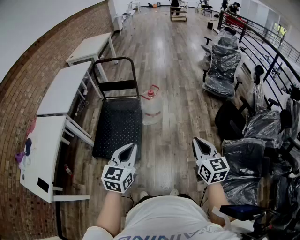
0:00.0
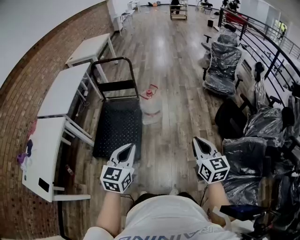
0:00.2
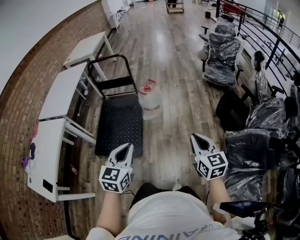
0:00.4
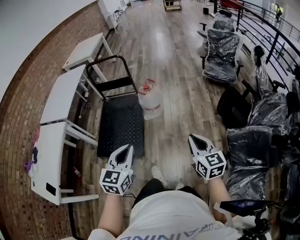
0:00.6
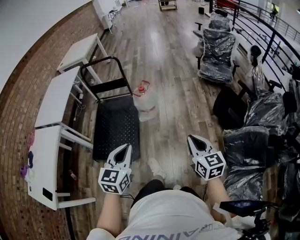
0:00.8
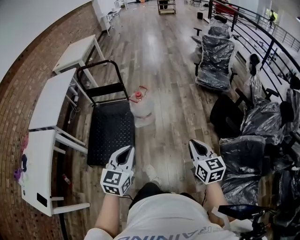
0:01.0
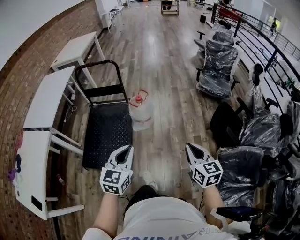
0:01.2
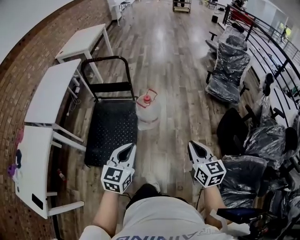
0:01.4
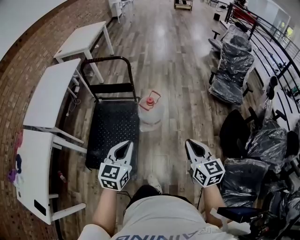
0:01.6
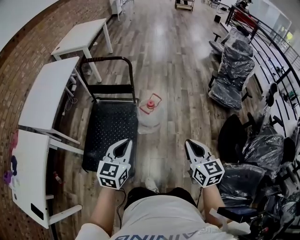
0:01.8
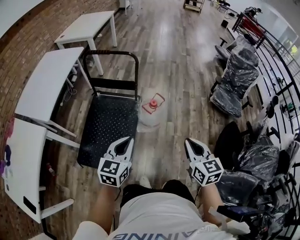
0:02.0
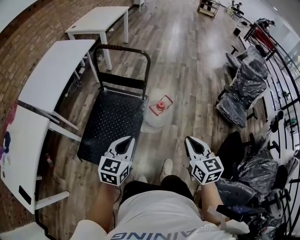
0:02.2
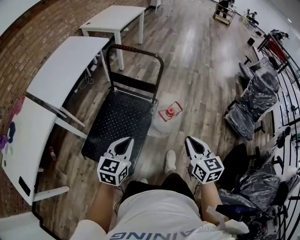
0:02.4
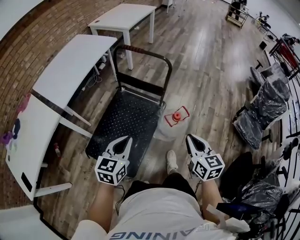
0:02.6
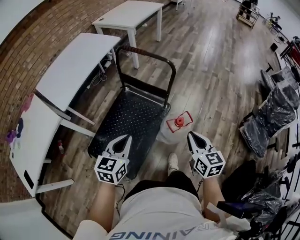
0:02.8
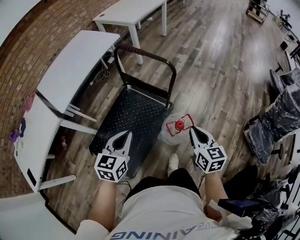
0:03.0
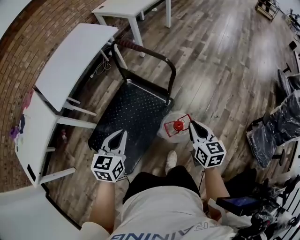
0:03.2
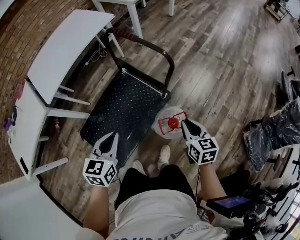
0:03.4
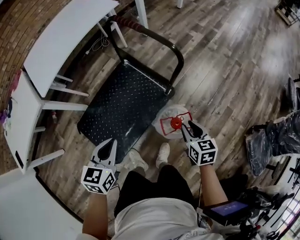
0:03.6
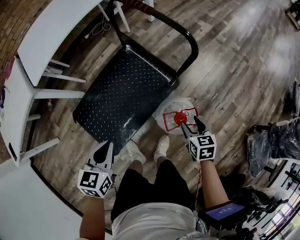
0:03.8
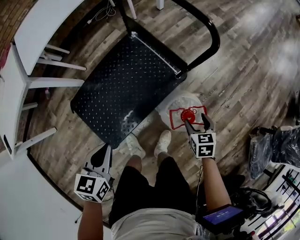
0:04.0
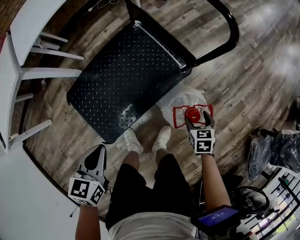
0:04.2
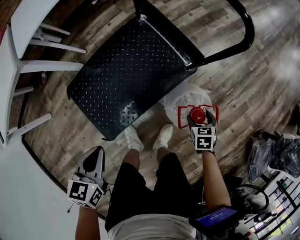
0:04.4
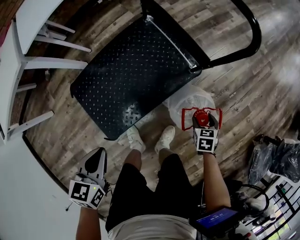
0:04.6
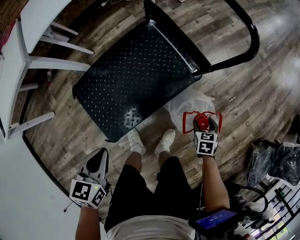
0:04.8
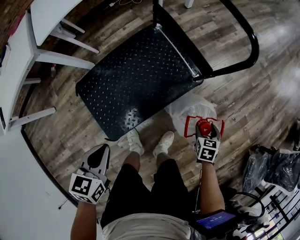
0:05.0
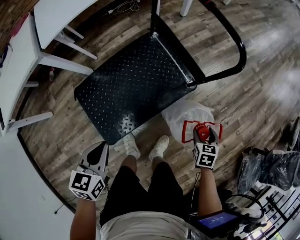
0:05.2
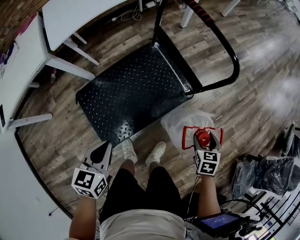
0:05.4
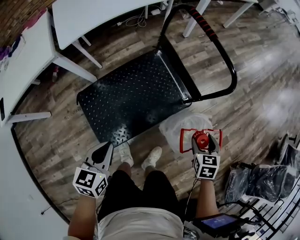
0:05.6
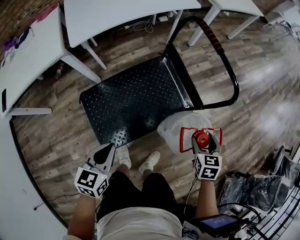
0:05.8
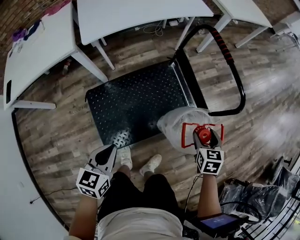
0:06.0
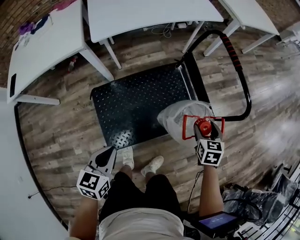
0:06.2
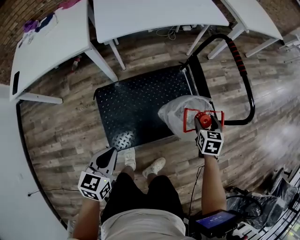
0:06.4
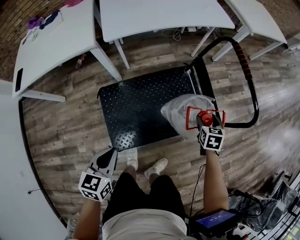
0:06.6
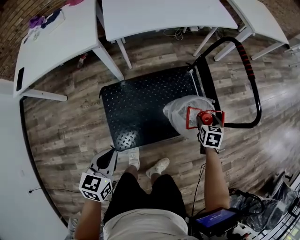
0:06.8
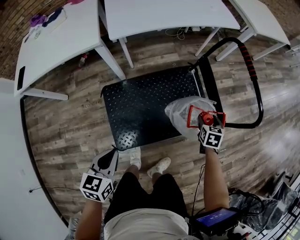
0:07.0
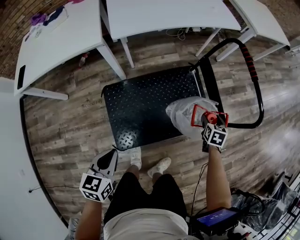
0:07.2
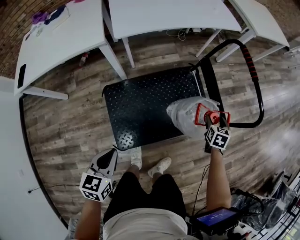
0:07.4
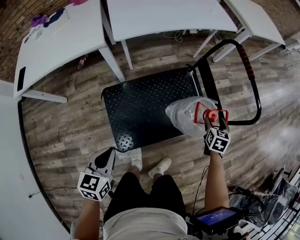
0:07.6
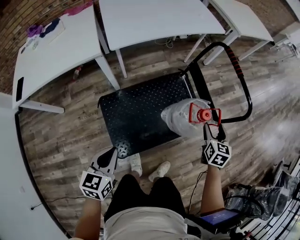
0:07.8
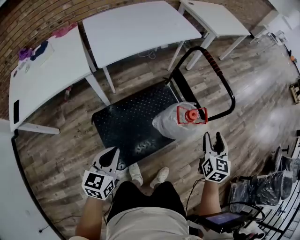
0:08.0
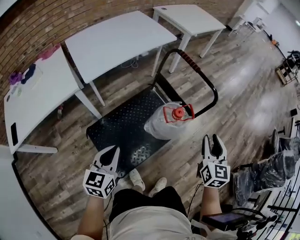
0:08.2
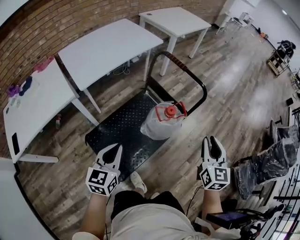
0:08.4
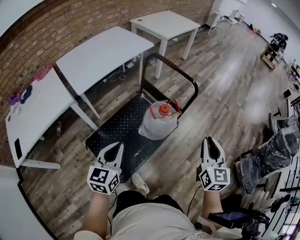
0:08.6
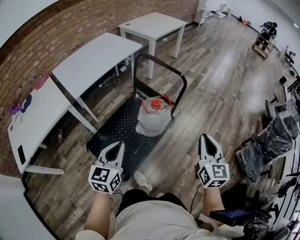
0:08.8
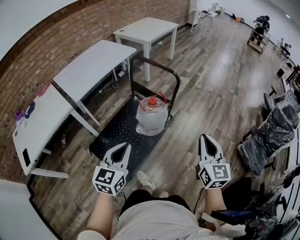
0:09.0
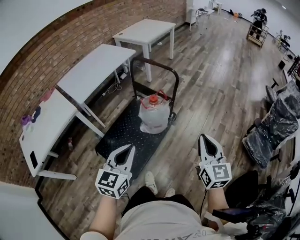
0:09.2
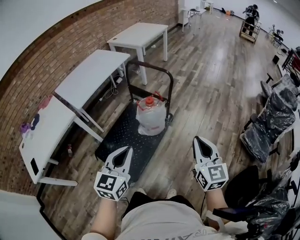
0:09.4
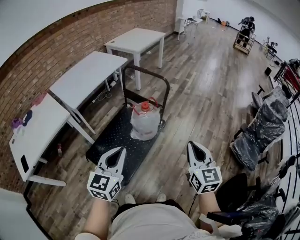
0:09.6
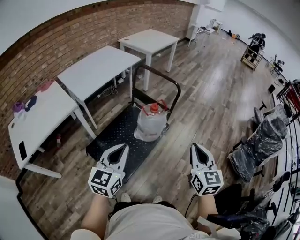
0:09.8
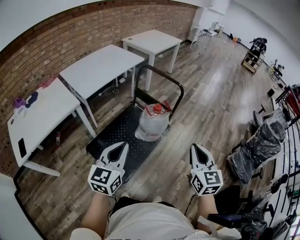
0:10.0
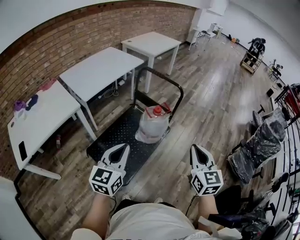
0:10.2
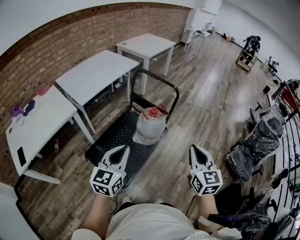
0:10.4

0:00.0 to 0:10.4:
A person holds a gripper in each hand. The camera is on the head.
0:00.0 to 0:01.4: The two grippers go about 20 cm forward.
0:01.4 to 0:03.0: The left gripper moves roughly 35 cm, and turns by about 30 degrees. Meanwhile the right gripper moves approximately 50 cm, and rotates roughly 30 degrees.
0:03.0 to 0:04.4: The right gripper moves downward, some 40 cm, tilts its fingers about 40 degrees downward, and opens up. Meanwhile the left gripper is displaced downward by roughly 20 cm, and rotates about 40 degrees.
0:04.4 to 0:06.0: The left gripper is displaced upward and to the left by about 10 cm; the right gripper moves upward, to the left and forward, about 30 cm.
0:06.0 to 0:07.4: The right gripper moves downward and forward, about 15 cm. Meanwhile the left gripper heads to the left and backward, covering some 10 cm.
0:07.4 to 0:09.0: The right gripper ends up about 60 cm from where it was, points its fingers roughly 40 degrees further upward, and closes up; the left gripper is displaced upward by some 20 cm, and turns by roughly 50 degrees.
0:09.0 to 0:10.4: Both grippers move to the left and backward, some 10 cm.

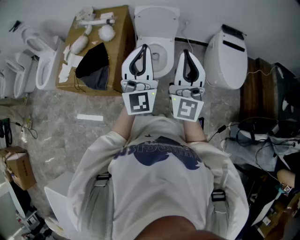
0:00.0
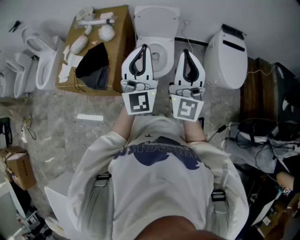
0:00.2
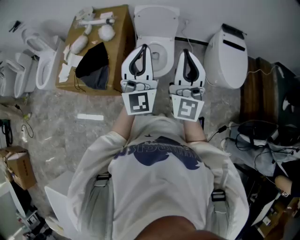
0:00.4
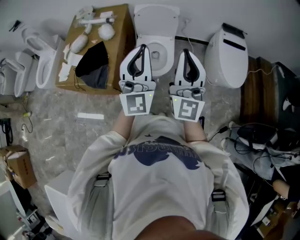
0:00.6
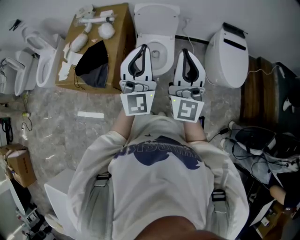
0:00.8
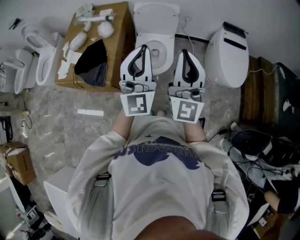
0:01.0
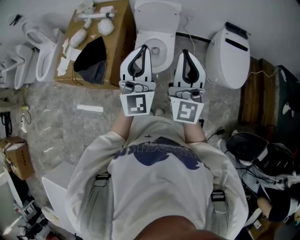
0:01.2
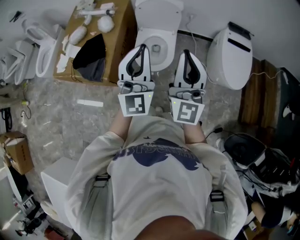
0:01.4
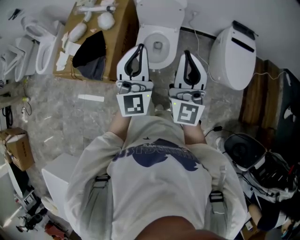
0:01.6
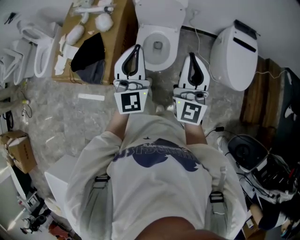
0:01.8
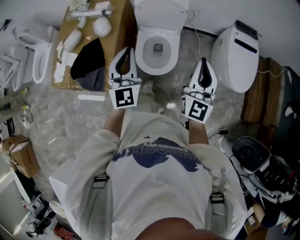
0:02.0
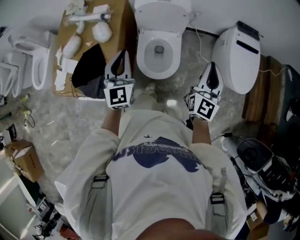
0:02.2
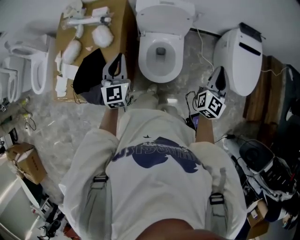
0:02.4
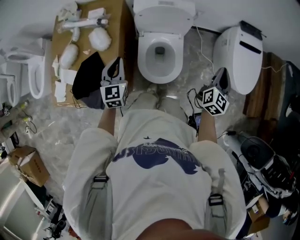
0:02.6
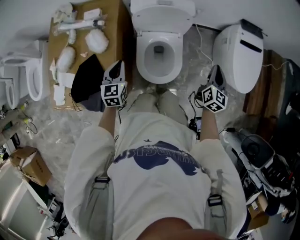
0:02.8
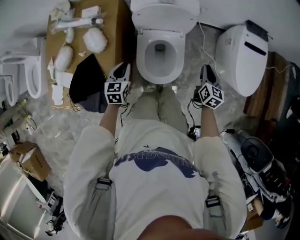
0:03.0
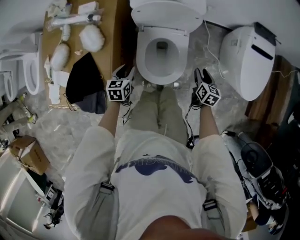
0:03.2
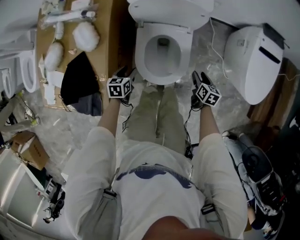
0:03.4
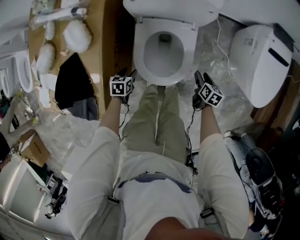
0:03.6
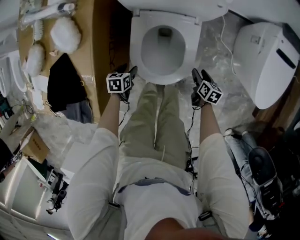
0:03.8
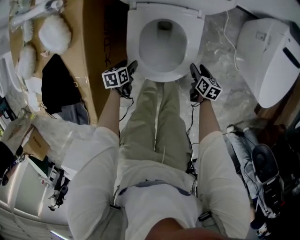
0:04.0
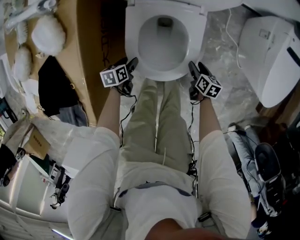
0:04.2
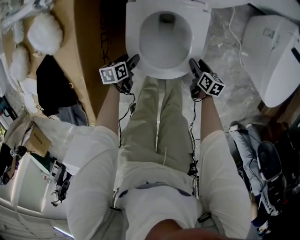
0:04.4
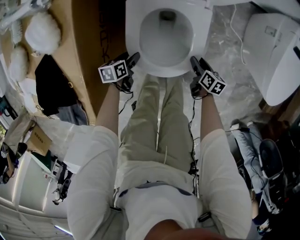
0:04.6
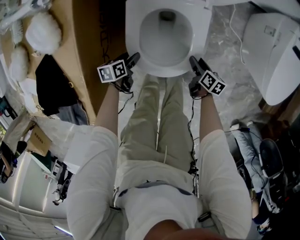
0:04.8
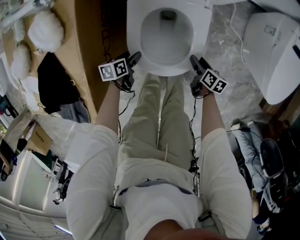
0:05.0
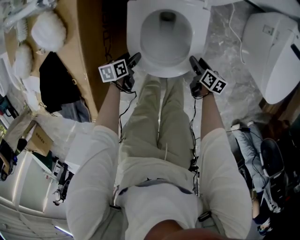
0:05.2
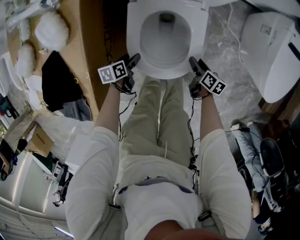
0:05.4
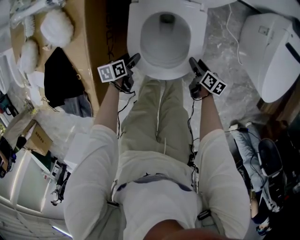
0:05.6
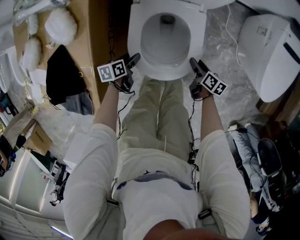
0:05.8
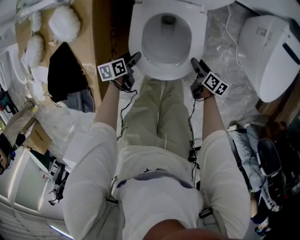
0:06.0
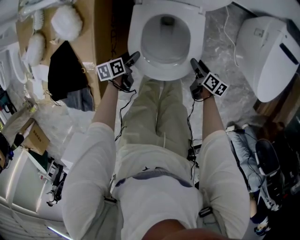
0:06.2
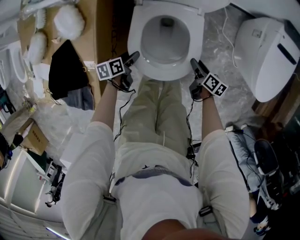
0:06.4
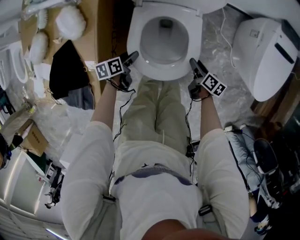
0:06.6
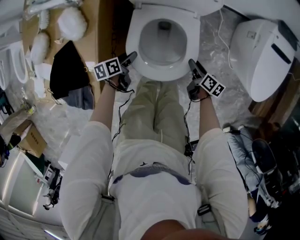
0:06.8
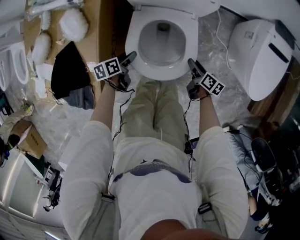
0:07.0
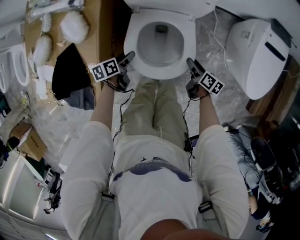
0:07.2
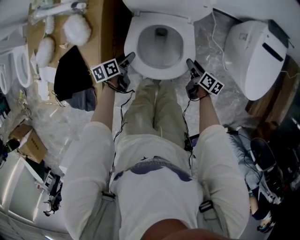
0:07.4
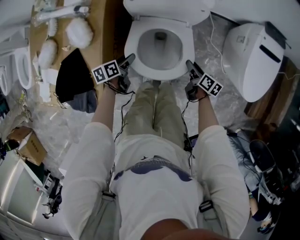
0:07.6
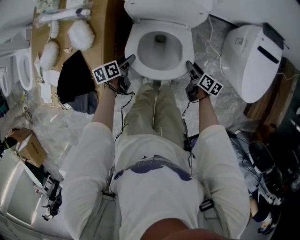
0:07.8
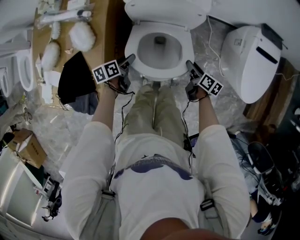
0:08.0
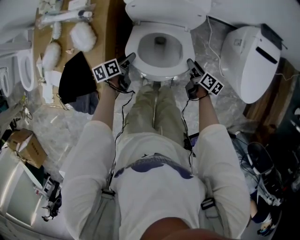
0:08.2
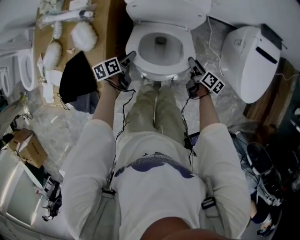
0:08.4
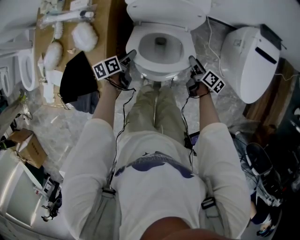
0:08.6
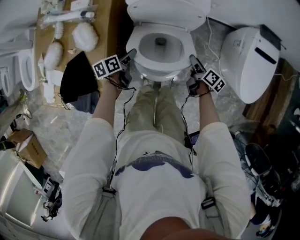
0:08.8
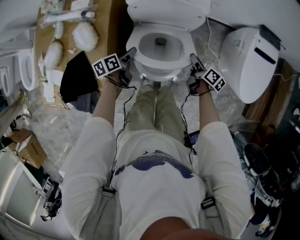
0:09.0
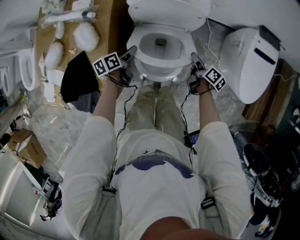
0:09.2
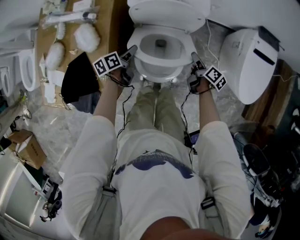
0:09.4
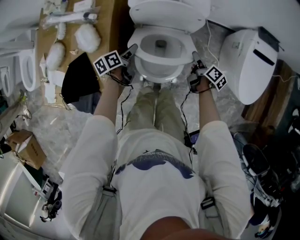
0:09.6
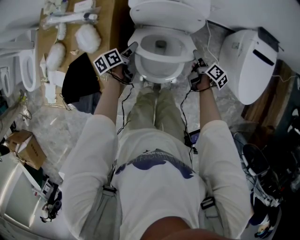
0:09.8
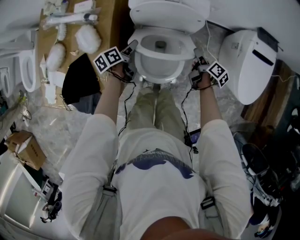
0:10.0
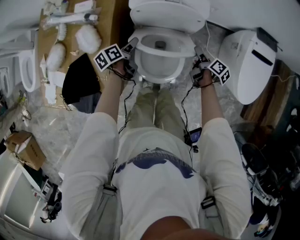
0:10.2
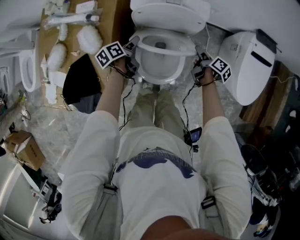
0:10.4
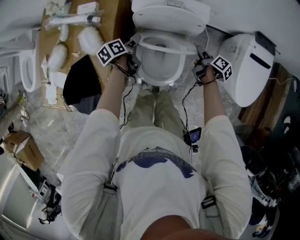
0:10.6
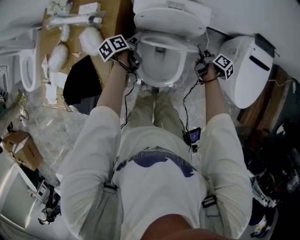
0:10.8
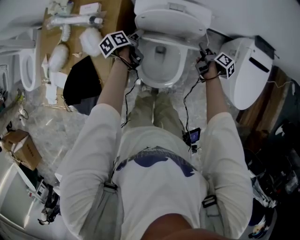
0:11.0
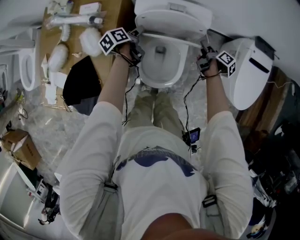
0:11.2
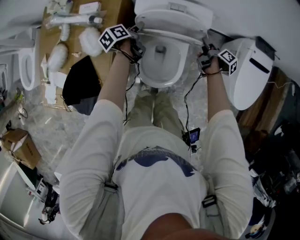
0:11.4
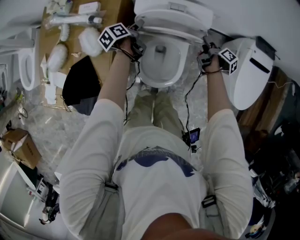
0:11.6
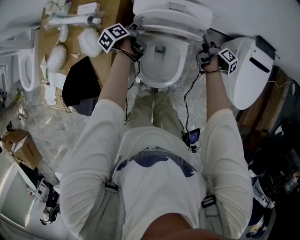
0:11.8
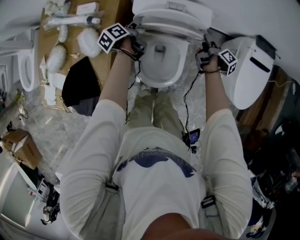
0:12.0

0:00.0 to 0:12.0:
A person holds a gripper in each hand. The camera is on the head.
0:00.0 to 0:01.6: The left gripper ends up approximately 5 cm from where it was; the right gripper is displaced forward by approximately 5 cm.
0:01.6 to 0:03.0: The right gripper travels downward and forward by about 50 cm, and tilts its fingers approximately 50 degrees downward. The left gripper moves downward, forward and to the left, approximately 50 cm, and tilts its fingers approximately 50 degrees downward.
0:03.0 to 0:04.4: The grippers both shift downward by some 40 cm. The left gripper rotates about 40 degrees, and opens up, while the right gripper rotates roughly 40 degrees, and opens its fingers.
0:04.4 to 0:06.0: The grippers both shift upward by roughly 10 cm.
0:06.0 to 0:07.6: Both grippers move upward and forward, some 15 cm.
0:07.6 to 0:09.0: Both grippers travel together forward and upward, roughly 10 cm.
0:09.0 to 0:10.4: The grippers both shift forward by roughly 5 cm.
0:10.4 to 0:12.0: Both grippers travel together forward, roughly 10 cm.

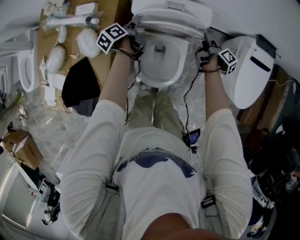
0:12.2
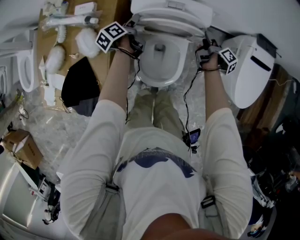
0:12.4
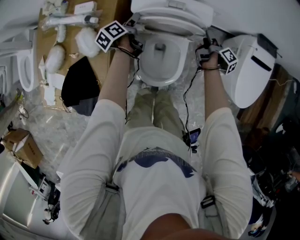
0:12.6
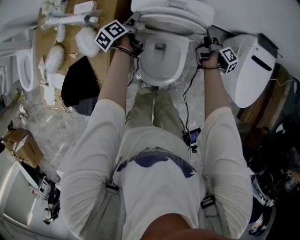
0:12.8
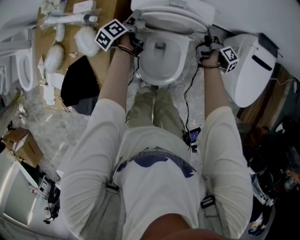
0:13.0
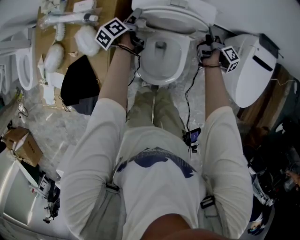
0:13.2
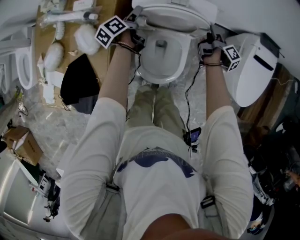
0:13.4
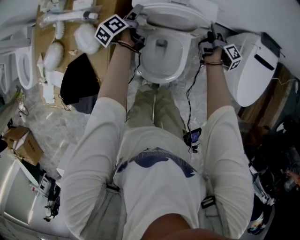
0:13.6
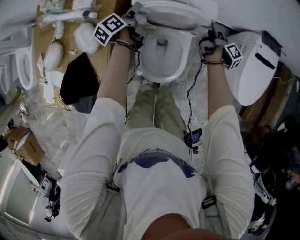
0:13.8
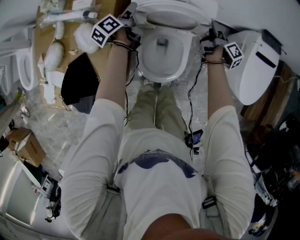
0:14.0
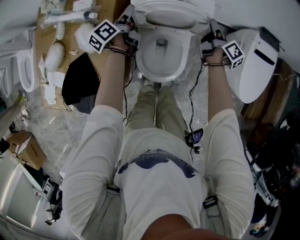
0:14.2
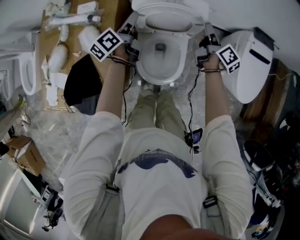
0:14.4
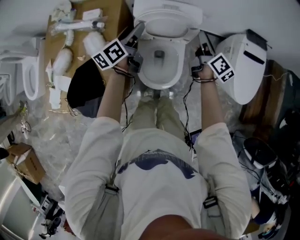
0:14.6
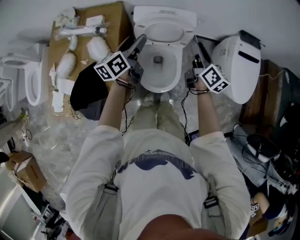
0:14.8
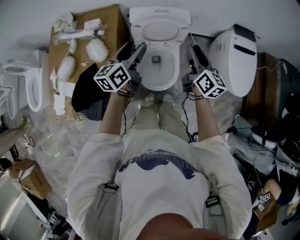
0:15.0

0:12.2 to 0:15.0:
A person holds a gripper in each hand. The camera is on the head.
0:12.2 to 0:13.6: The grippers stay close to where they were, moving slightly.
0:13.6 to 0:15.0: The two grippers go roughly 30 cm upward and backward. The right gripper rolls counterclockwise, seen from behind, by some 60 degrees, and closes up, while the left gripper changes its angle by roughly 40 degrees.
